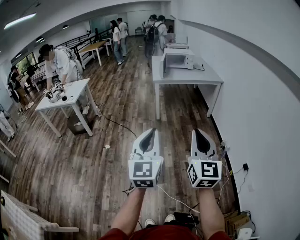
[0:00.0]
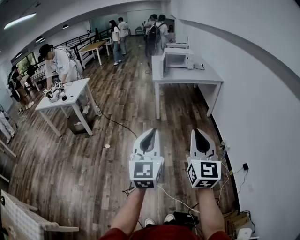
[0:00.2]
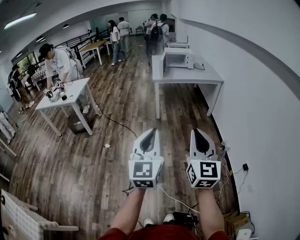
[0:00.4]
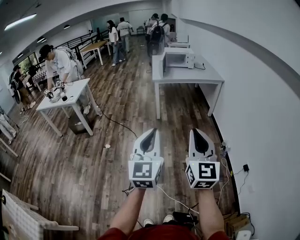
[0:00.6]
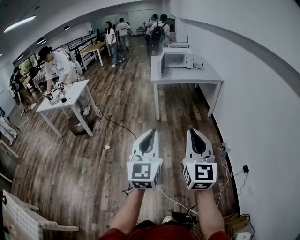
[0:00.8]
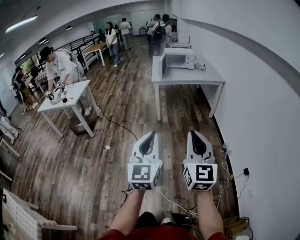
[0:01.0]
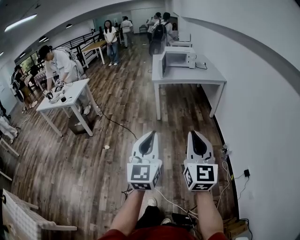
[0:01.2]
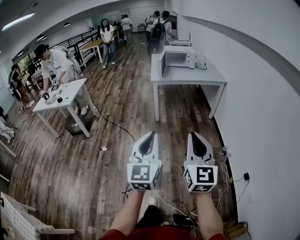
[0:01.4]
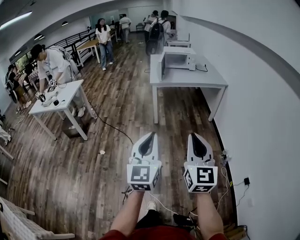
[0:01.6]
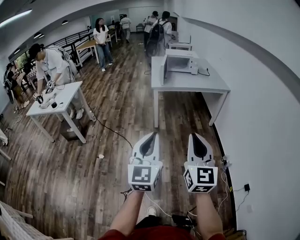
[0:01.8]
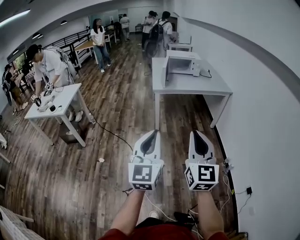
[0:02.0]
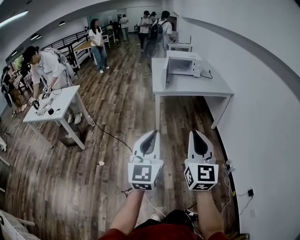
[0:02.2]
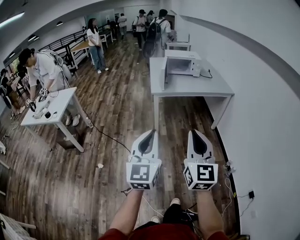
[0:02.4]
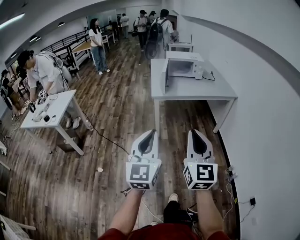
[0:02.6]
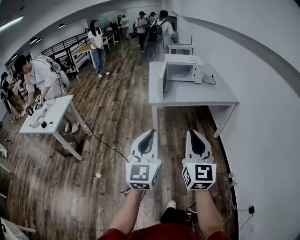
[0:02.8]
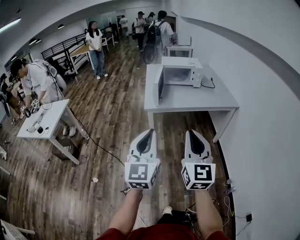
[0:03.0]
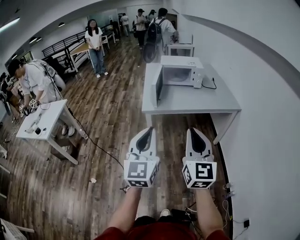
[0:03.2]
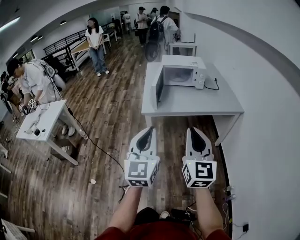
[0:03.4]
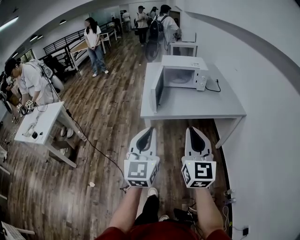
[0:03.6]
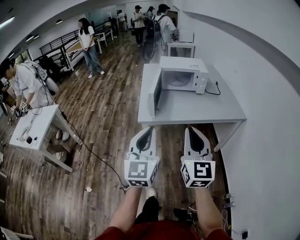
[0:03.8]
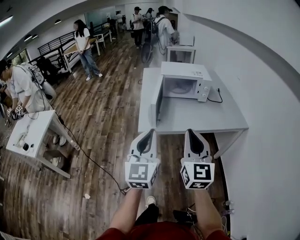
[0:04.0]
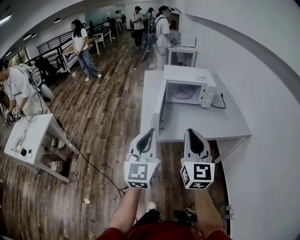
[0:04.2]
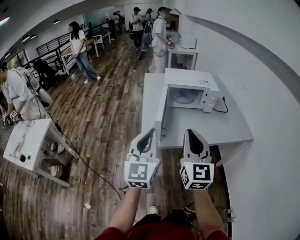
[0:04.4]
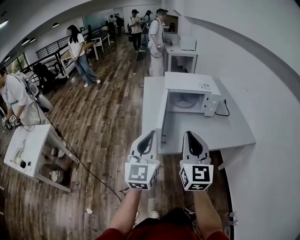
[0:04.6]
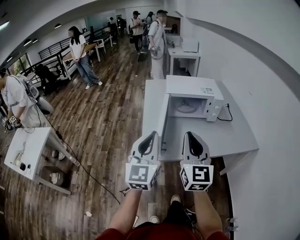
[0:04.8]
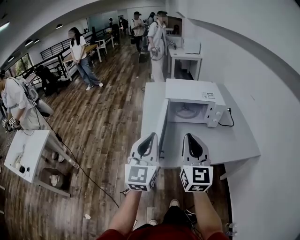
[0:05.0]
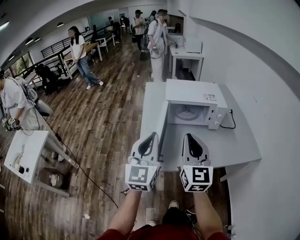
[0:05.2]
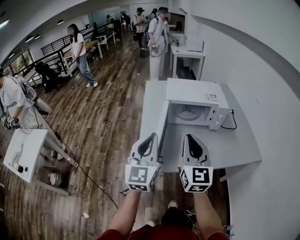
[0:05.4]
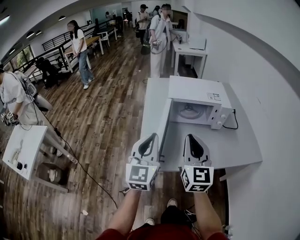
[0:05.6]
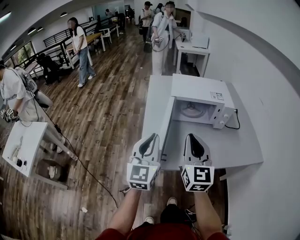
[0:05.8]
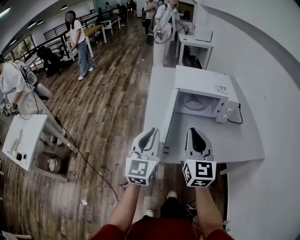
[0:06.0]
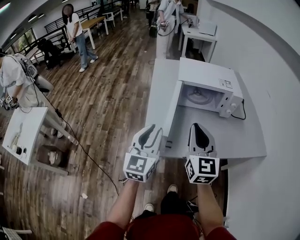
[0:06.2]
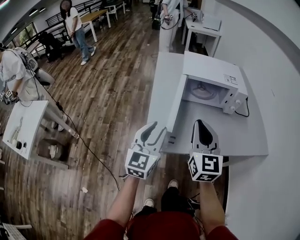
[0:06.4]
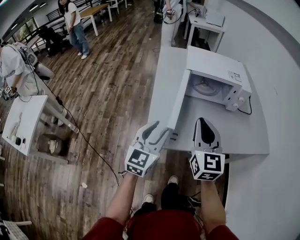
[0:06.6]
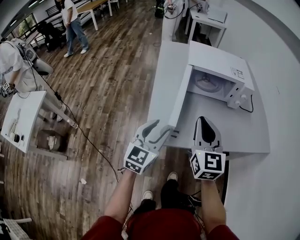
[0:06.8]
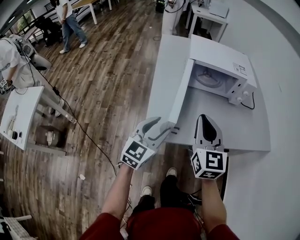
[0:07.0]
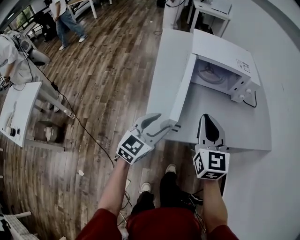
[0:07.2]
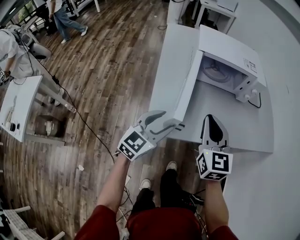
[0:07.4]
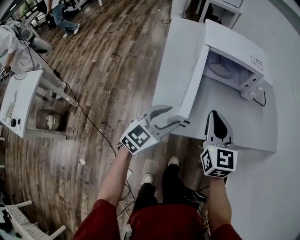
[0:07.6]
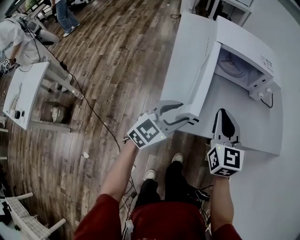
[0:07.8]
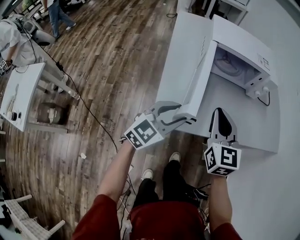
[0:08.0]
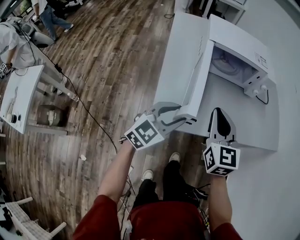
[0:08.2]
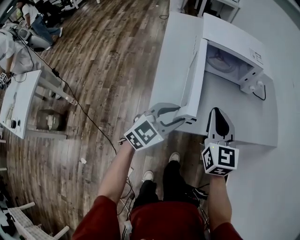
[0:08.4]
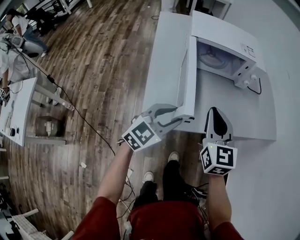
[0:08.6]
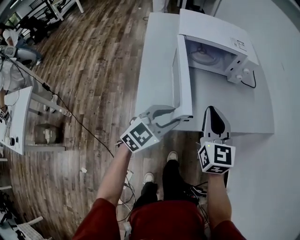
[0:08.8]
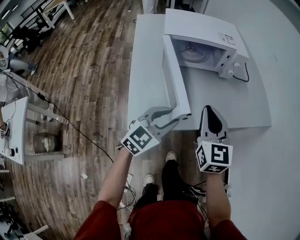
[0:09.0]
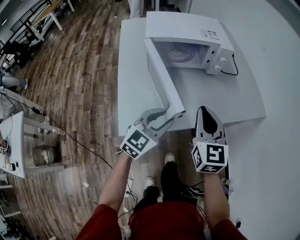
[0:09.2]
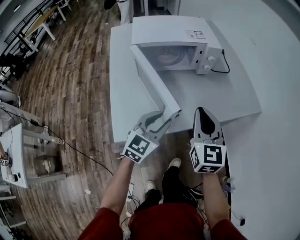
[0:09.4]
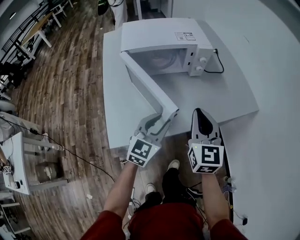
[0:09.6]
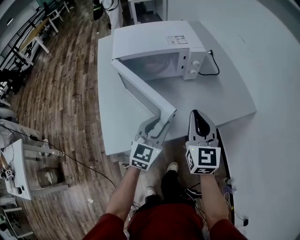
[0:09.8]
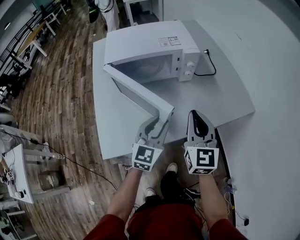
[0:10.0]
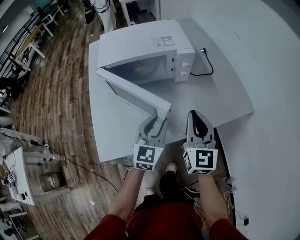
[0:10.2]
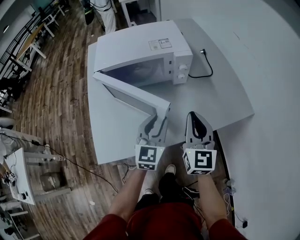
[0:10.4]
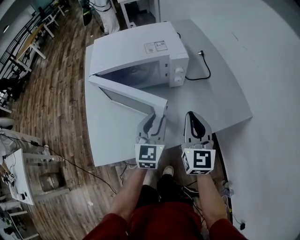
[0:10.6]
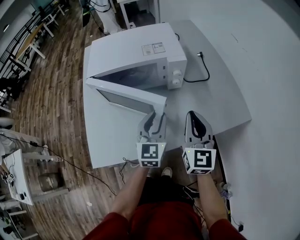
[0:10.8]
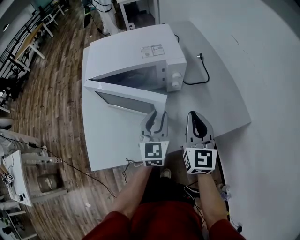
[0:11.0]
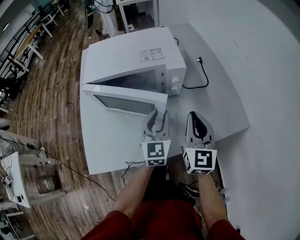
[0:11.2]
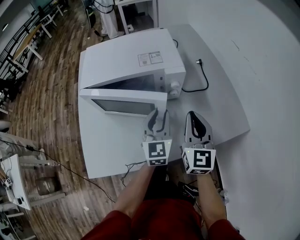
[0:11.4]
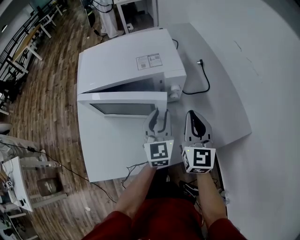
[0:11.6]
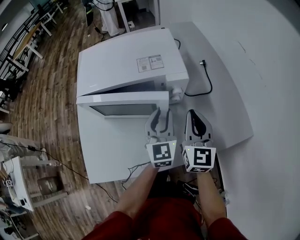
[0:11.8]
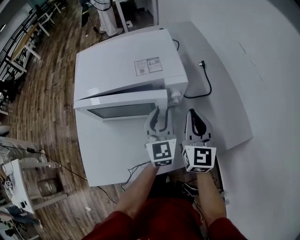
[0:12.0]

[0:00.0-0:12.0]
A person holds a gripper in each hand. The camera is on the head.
0:00.0 to 0:01.6: The two grippers go approximately 15 cm forward.
0:01.6 to 0:03.0: Both grippers are carried forward, approximately 40 cm.
0:03.0 to 0:04.4: Both grippers are carried forward, roughly 40 cm.
0:04.4 to 0:06.0: The left gripper heads forward and downward, covering roughly 20 cm. The right gripper shifts roughly 20 cm forward.
0:06.0 to 0:07.6: The two grippers go some 15 cm downward. The left gripper turns by approximately 40 degrees, and opens up.
0:07.6 to 0:09.0: Both grippers travel together to the right, about 10 cm.
0:09.0 to 0:10.4: The right gripper moves to the right and forward, approximately 20 cm. The left gripper is displaced forward and to the right by some 20 cm, and changes its angle by approximately 20 degrees.
0:10.4 to 0:12.0: The grippers both shift forward by about 15 cm.

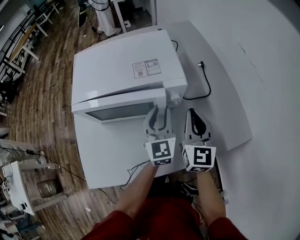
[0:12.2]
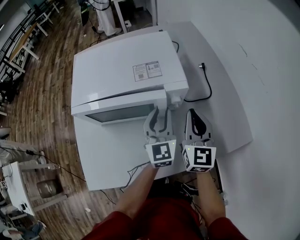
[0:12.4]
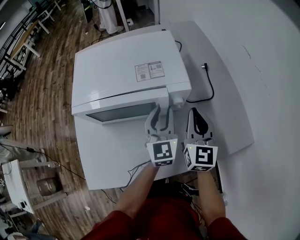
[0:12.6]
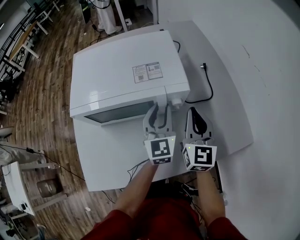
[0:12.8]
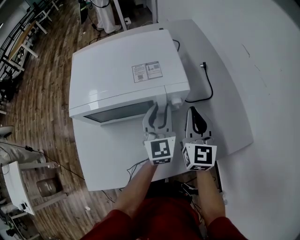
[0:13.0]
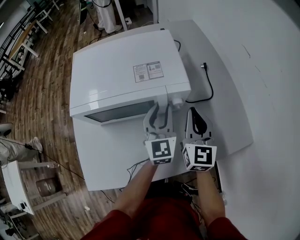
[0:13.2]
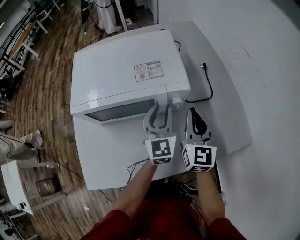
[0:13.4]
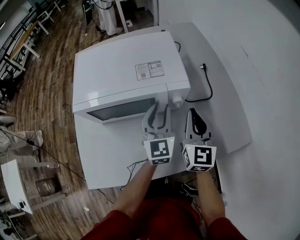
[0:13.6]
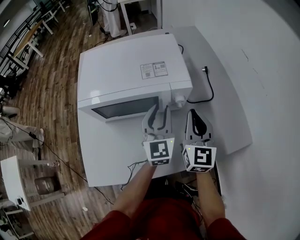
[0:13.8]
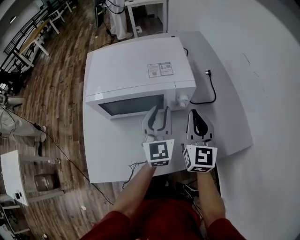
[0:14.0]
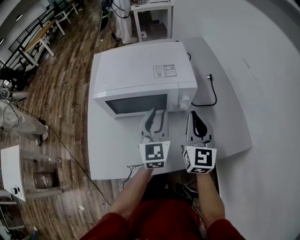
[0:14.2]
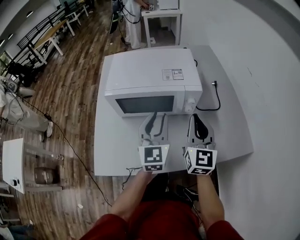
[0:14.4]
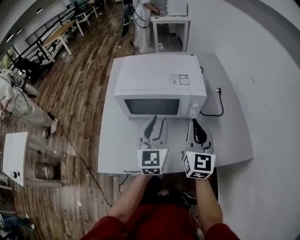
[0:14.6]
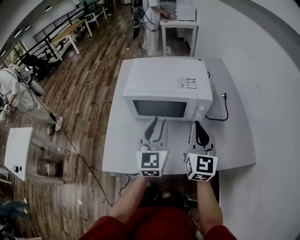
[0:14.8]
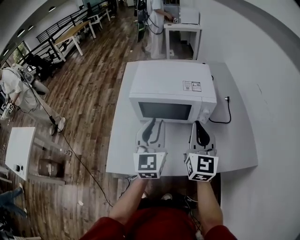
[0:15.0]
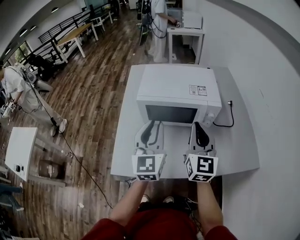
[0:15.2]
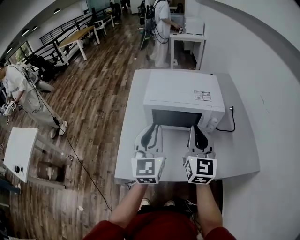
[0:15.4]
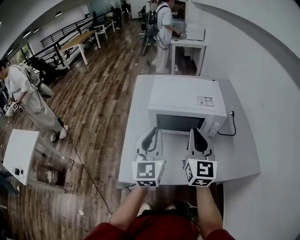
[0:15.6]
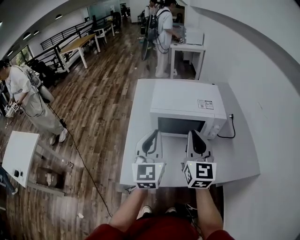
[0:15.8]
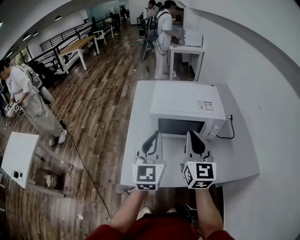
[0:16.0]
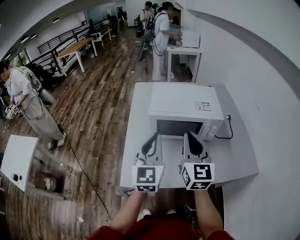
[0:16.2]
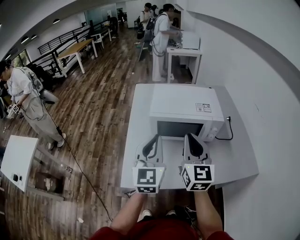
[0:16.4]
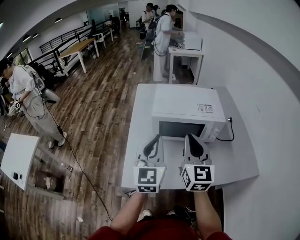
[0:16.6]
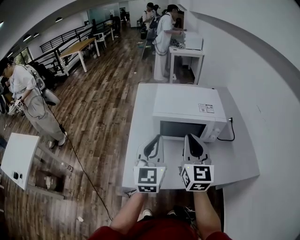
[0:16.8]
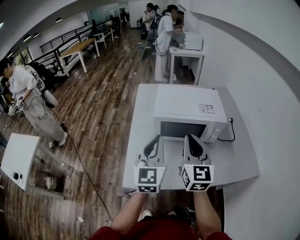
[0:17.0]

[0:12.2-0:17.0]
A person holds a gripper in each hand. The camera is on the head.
0:12.2 to 0:13.8: The grippers stay close to where they were, moving slightly.
0:13.8 to 0:15.4: The right gripper travels to the left, upward and backward by about 25 cm, while the left gripper is displaced to the left, backward and upward by some 30 cm.
0:15.4 to 0:17.0: The left gripper changes place by some 5 cm. The right gripper goes roughly 10 cm to the left.

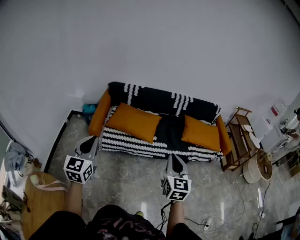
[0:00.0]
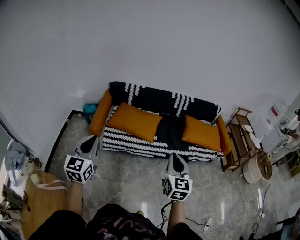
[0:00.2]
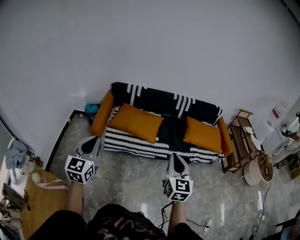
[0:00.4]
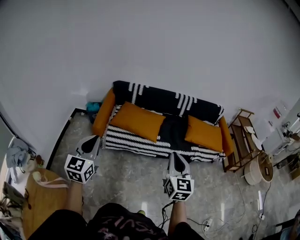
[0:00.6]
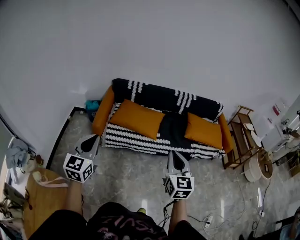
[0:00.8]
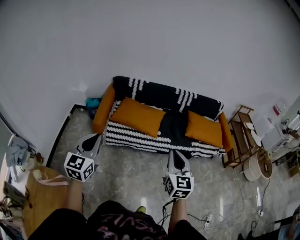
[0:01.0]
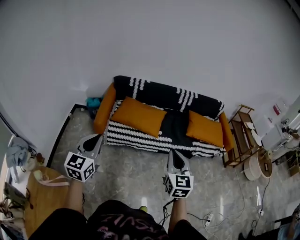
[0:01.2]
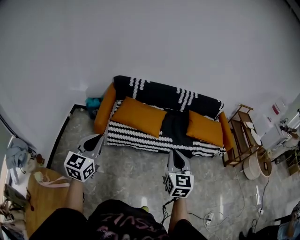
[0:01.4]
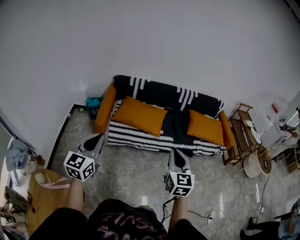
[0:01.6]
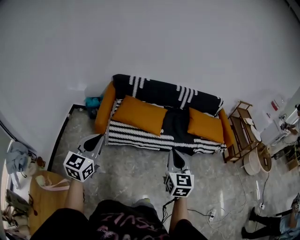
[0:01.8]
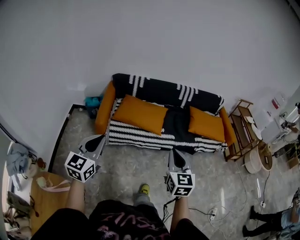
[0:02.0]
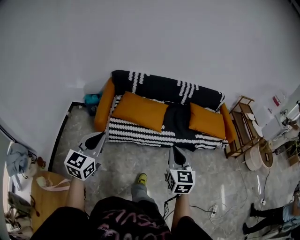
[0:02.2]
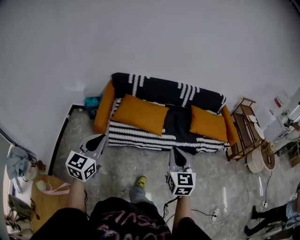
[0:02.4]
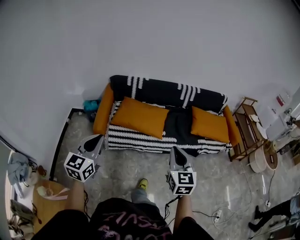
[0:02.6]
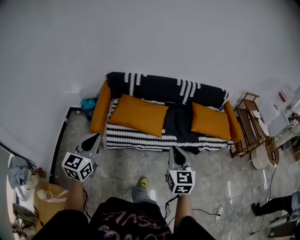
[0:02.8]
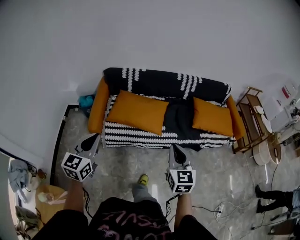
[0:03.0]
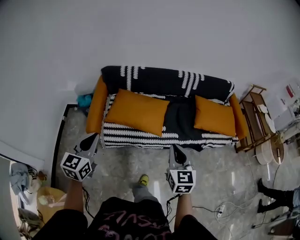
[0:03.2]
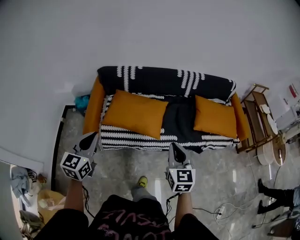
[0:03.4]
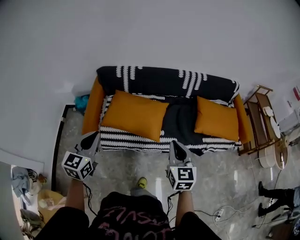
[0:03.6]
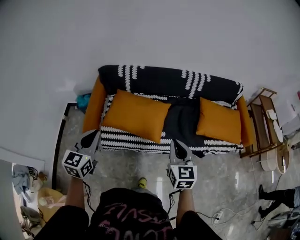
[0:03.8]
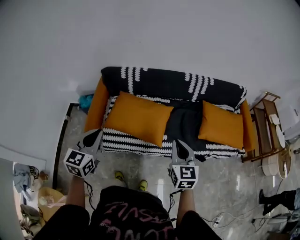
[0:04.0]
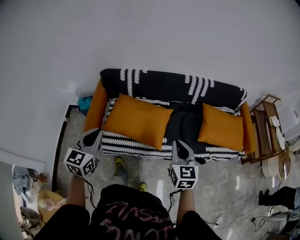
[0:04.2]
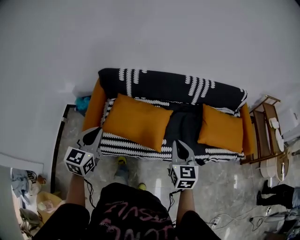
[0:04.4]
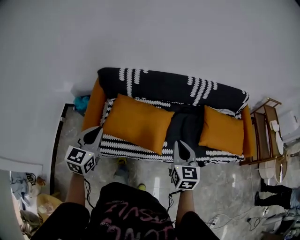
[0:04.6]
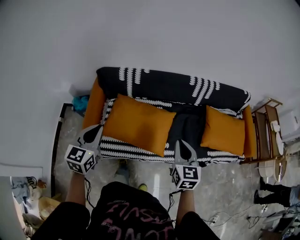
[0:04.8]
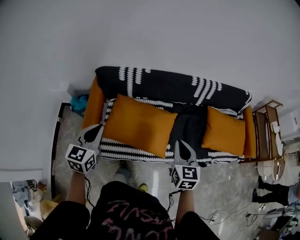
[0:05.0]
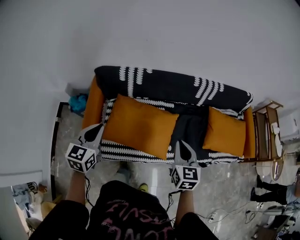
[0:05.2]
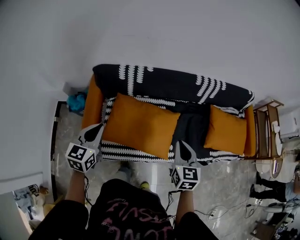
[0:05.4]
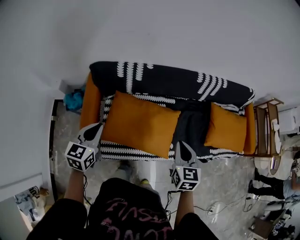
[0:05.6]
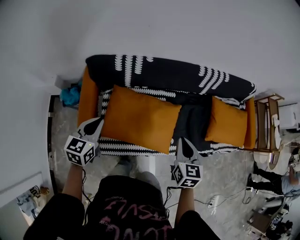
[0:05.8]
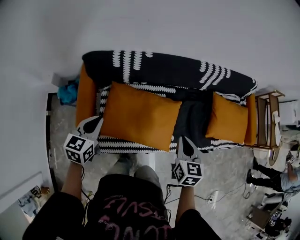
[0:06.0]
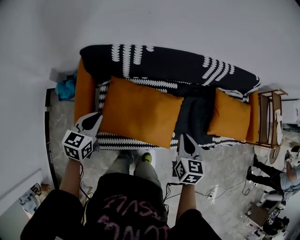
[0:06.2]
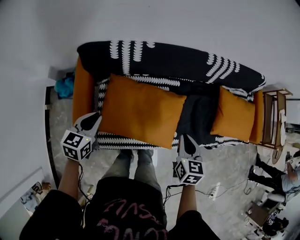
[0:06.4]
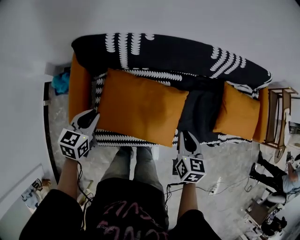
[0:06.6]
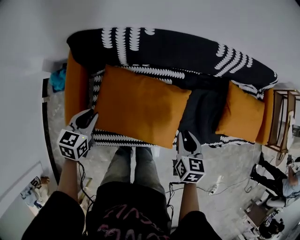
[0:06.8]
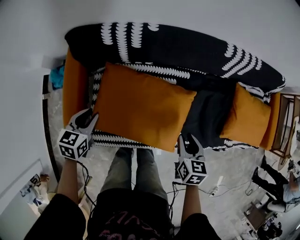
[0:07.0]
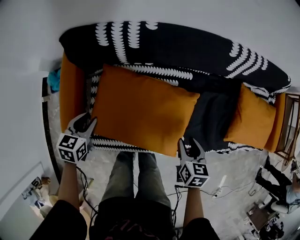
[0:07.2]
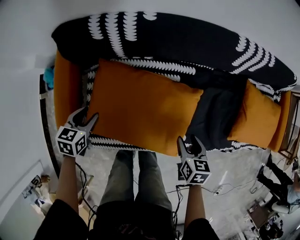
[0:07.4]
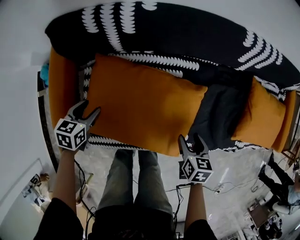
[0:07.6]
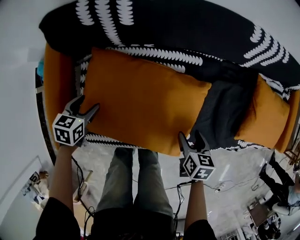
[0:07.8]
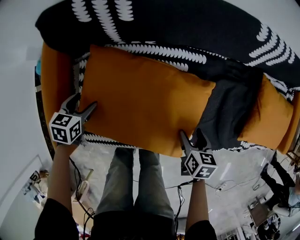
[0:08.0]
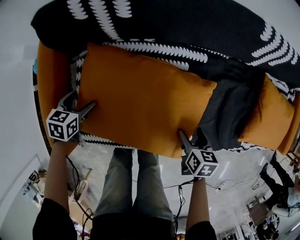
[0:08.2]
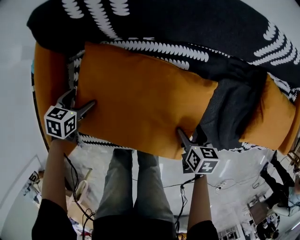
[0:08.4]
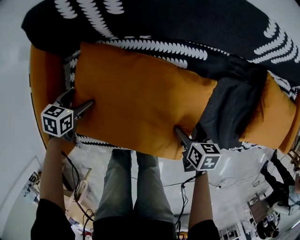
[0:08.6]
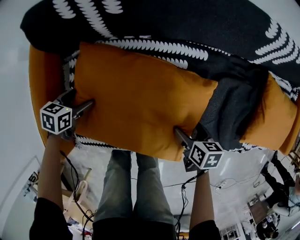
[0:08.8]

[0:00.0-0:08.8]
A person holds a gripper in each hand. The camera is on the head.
0:00.0 to 0:01.4: The left gripper shifts by about 5 cm. The right gripper is displaced to the left by roughly 5 cm.
0:01.4 to 0:03.0: The grippers both shift forward by approximately 15 cm.
0:03.0 to 0:04.4: The two grippers go some 25 cm forward.
0:04.4 to 0:05.8: The left gripper shifts roughly 30 cm forward, downward and to the left; the right gripper goes some 25 cm forward, to the left and downward.
0:05.8 to 0:07.4: Both grippers move downward, about 30 cm. The left gripper swivels about 30 degrees, and opens; the right gripper rotates approximately 30 degrees, and opens its fingers.
0:07.4 to 0:08.8: Both grippers move downward, roughly 15 cm. The right gripper opens up. The left gripper opens.
